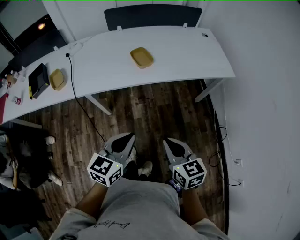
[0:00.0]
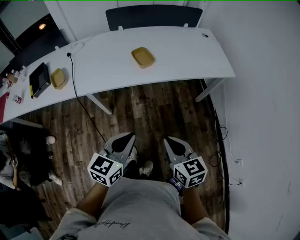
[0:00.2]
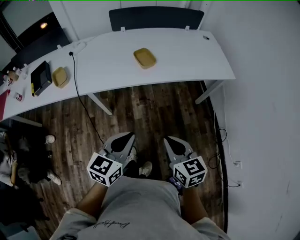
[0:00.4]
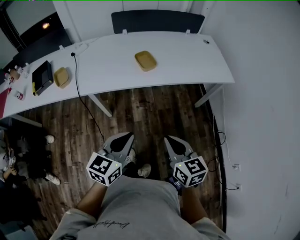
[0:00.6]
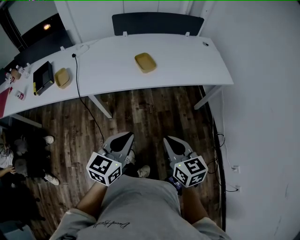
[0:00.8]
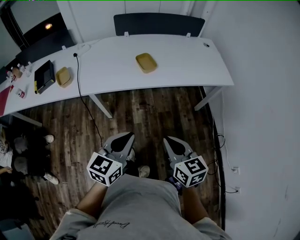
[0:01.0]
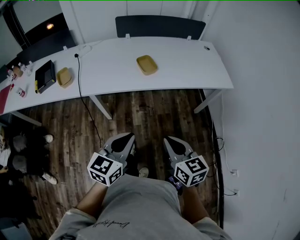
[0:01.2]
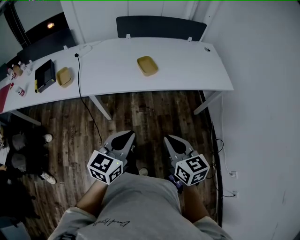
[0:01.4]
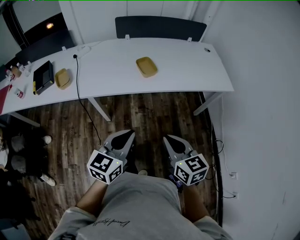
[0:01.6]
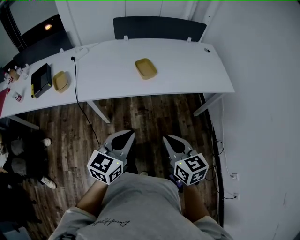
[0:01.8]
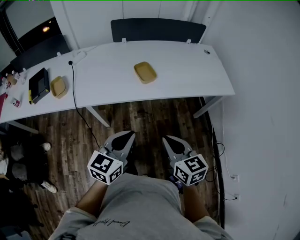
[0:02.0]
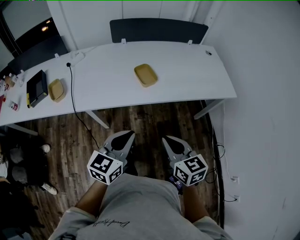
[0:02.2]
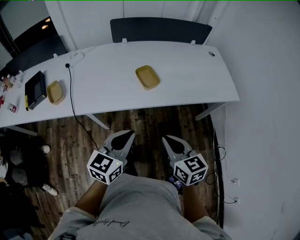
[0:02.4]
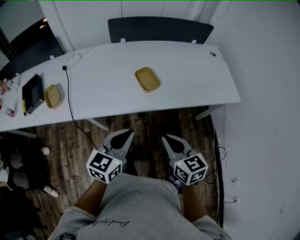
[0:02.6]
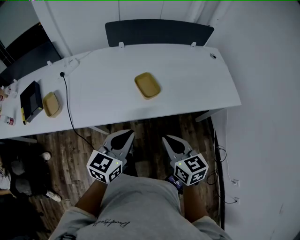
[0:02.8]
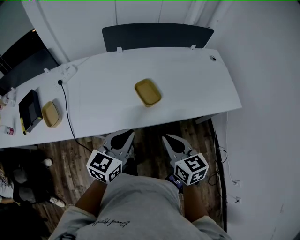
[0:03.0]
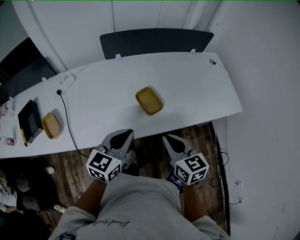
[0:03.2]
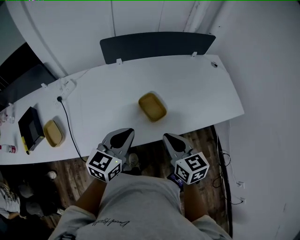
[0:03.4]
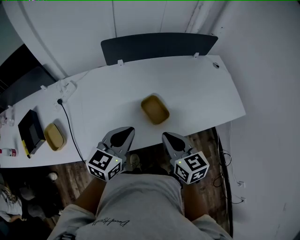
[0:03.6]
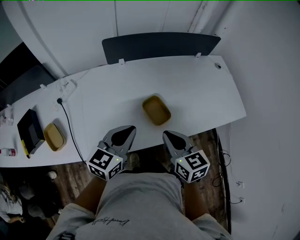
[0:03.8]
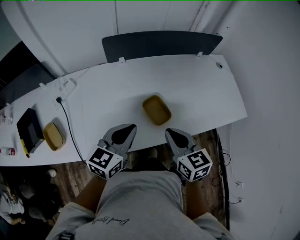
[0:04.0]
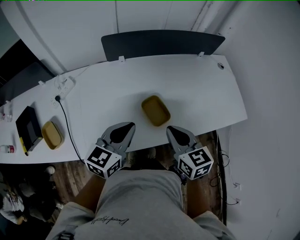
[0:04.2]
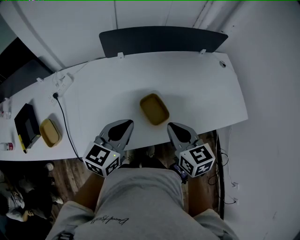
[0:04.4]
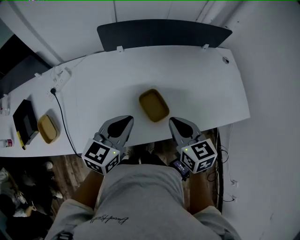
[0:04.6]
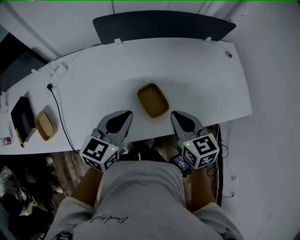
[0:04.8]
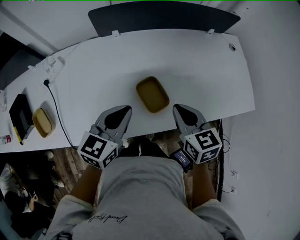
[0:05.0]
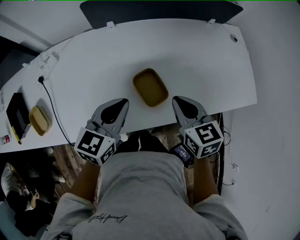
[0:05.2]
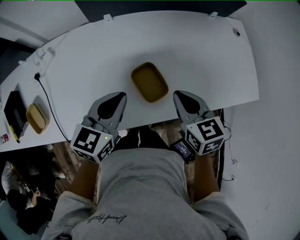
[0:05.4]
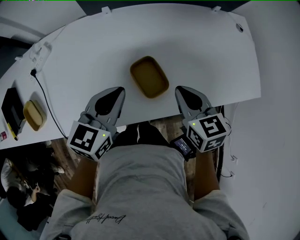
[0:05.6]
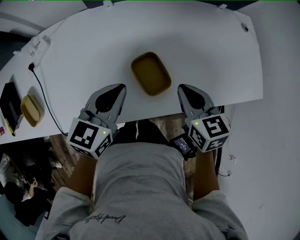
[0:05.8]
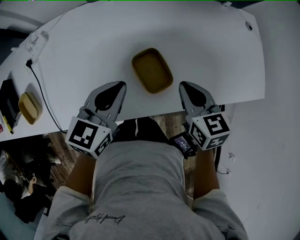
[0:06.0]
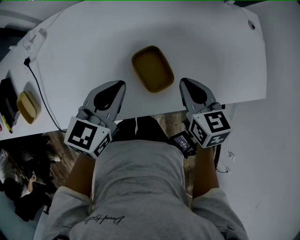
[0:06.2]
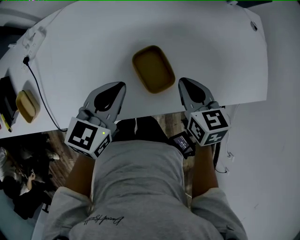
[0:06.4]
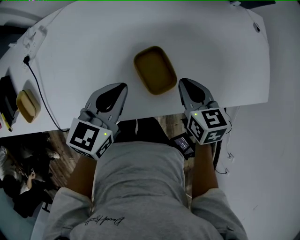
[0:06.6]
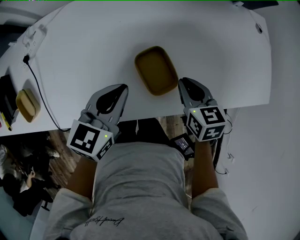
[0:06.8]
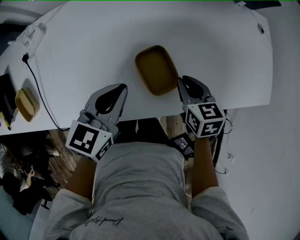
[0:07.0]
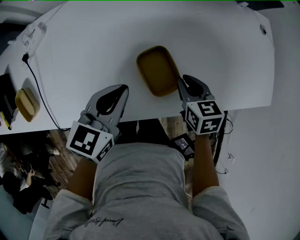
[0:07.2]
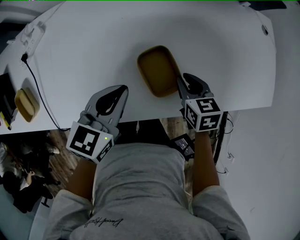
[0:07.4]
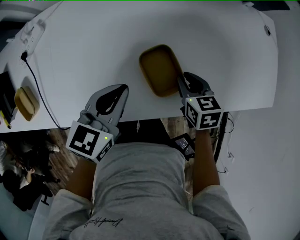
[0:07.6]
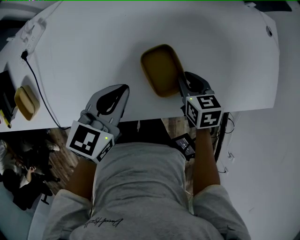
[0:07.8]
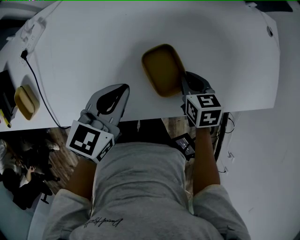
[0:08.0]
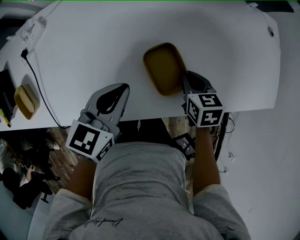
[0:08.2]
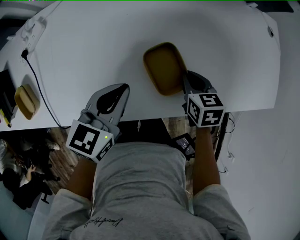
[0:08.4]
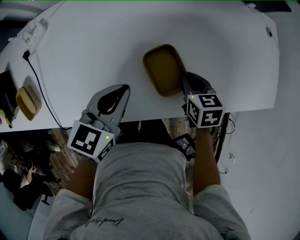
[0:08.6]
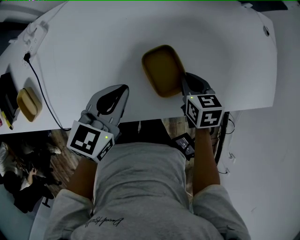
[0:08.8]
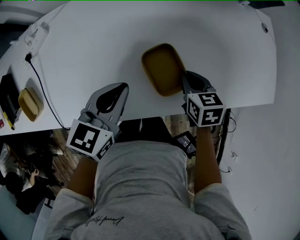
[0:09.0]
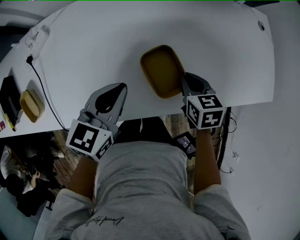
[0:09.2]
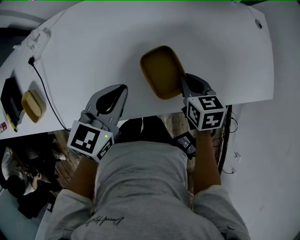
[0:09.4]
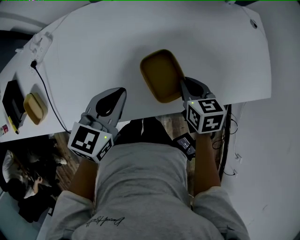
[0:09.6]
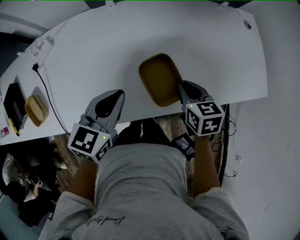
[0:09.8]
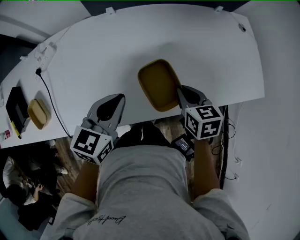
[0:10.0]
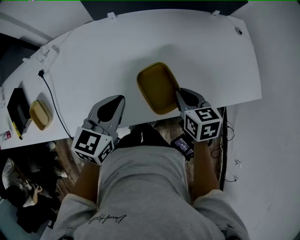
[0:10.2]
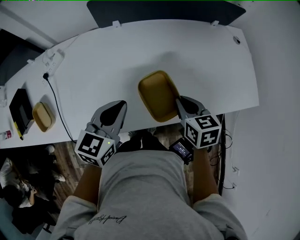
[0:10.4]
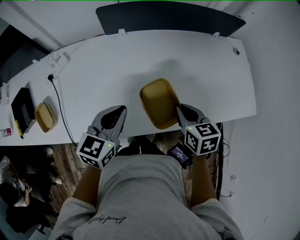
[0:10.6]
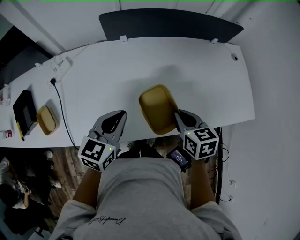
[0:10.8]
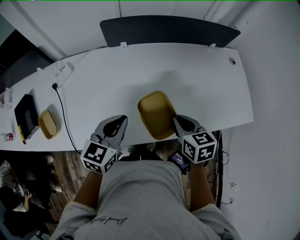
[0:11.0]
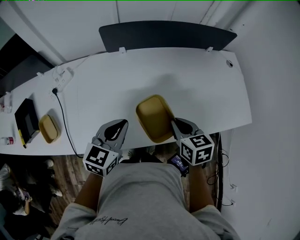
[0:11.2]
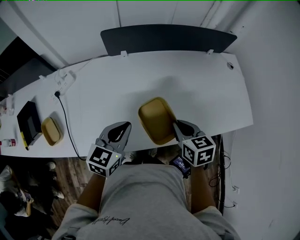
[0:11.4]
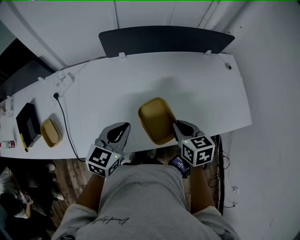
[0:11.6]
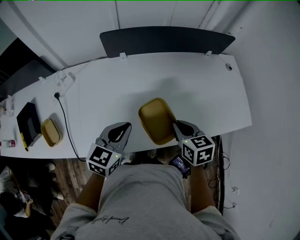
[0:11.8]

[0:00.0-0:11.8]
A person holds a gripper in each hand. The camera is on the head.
0:00.0 to 0:01.4: The grippers make only small movements.
0:01.4 to 0:03.0: The grippers both shift forward by roughly 25 cm.
0:03.0 to 0:04.4: Both grippers travel together forward, about 15 cm.
0:04.4 to 0:06.0: The right gripper goes some 15 cm downward, forward and to the right, while the left gripper goes some 10 cm downward and forward.
0:06.0 to 0:07.4: The right gripper moves downward, some 10 cm.
0:07.4 to 0:08.8: There are only small adjustments of the grippers.
0:08.8 to 0:10.4: The right gripper shifts approximately 15 cm upward and backward, while the left gripper goes about 10 cm upward.
0:10.4 to 0:11.8: The grippers stay close to where they were, moving slightly.

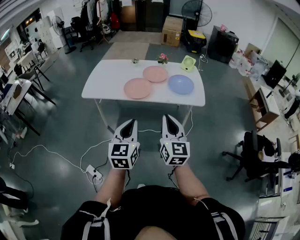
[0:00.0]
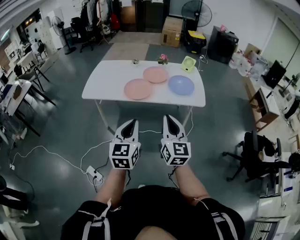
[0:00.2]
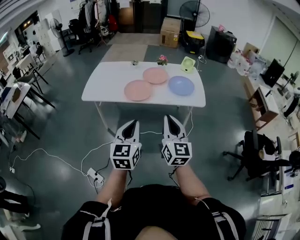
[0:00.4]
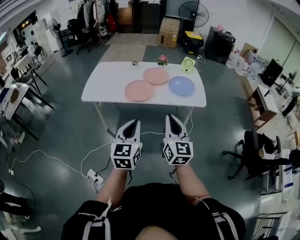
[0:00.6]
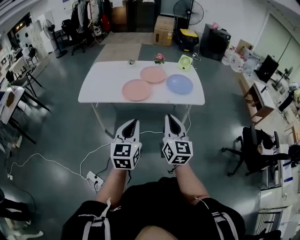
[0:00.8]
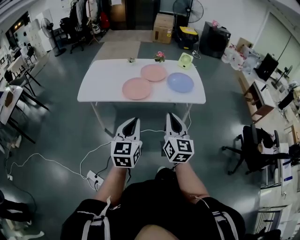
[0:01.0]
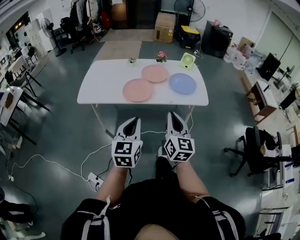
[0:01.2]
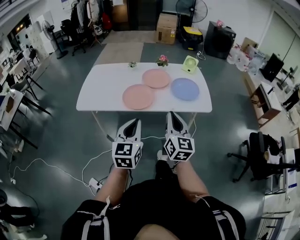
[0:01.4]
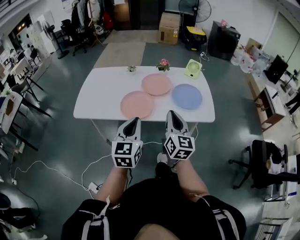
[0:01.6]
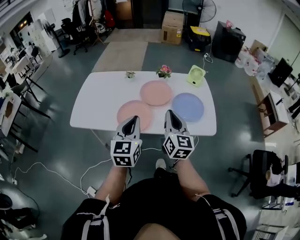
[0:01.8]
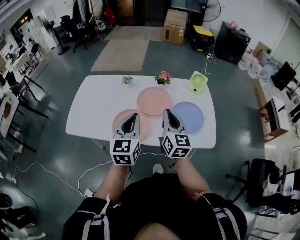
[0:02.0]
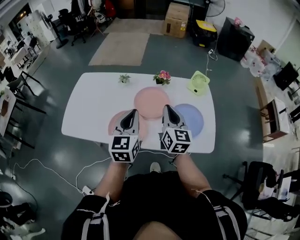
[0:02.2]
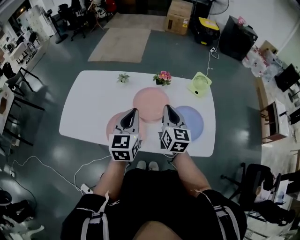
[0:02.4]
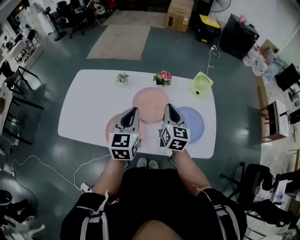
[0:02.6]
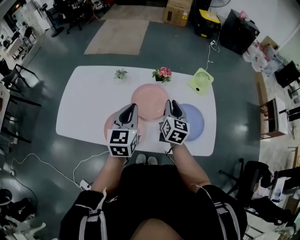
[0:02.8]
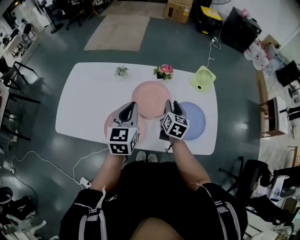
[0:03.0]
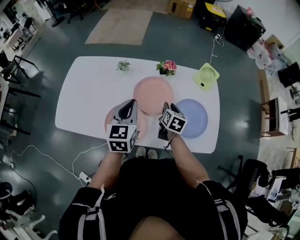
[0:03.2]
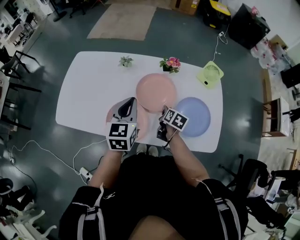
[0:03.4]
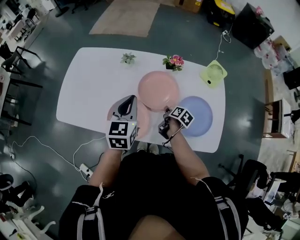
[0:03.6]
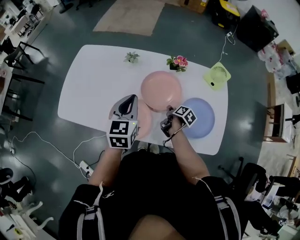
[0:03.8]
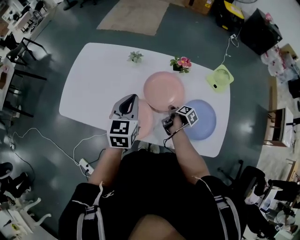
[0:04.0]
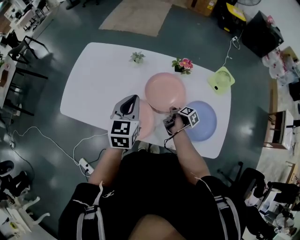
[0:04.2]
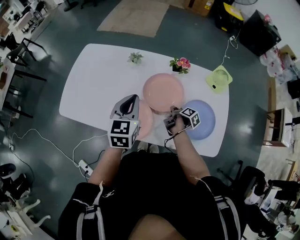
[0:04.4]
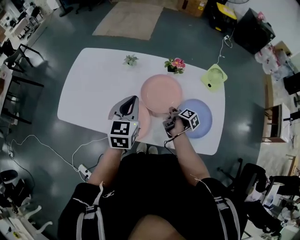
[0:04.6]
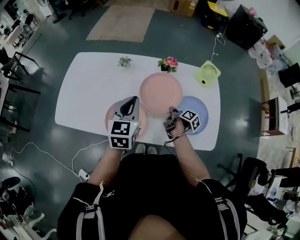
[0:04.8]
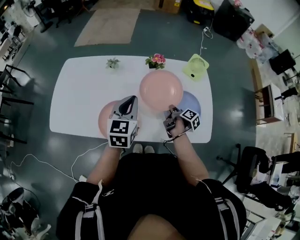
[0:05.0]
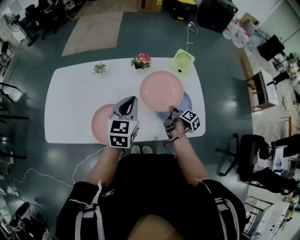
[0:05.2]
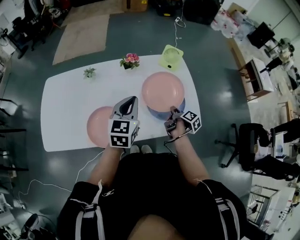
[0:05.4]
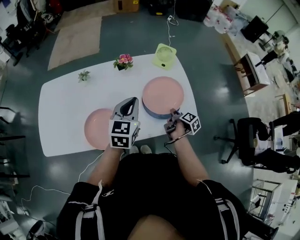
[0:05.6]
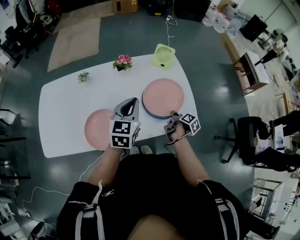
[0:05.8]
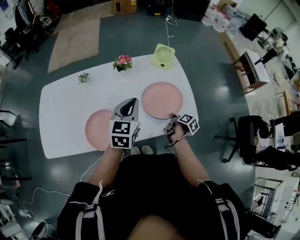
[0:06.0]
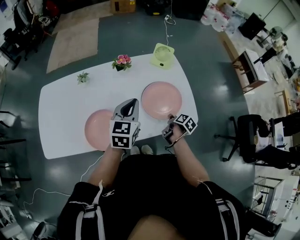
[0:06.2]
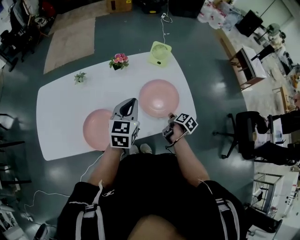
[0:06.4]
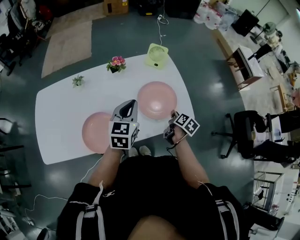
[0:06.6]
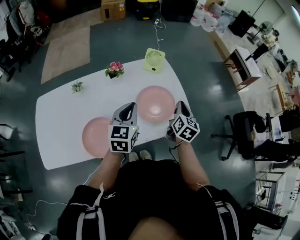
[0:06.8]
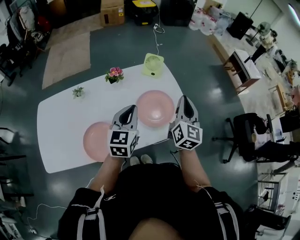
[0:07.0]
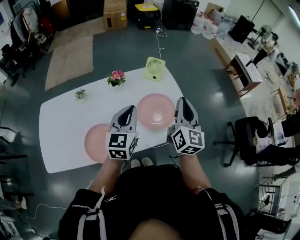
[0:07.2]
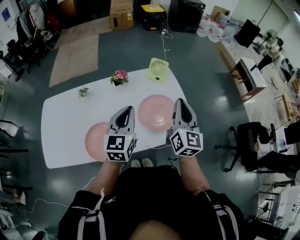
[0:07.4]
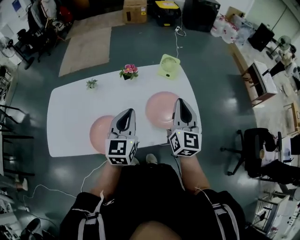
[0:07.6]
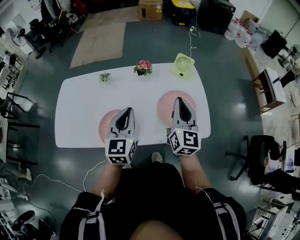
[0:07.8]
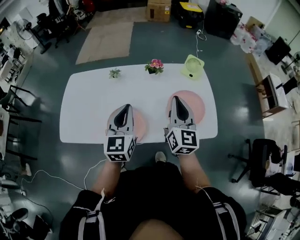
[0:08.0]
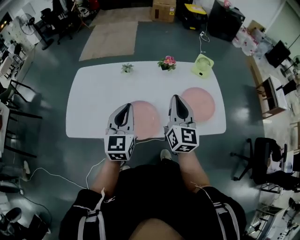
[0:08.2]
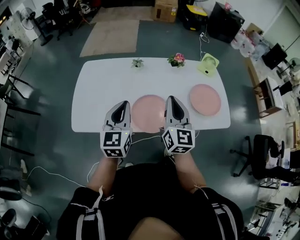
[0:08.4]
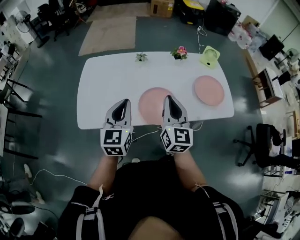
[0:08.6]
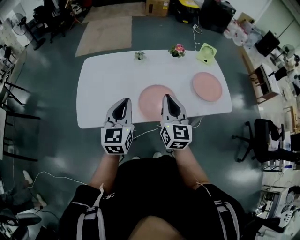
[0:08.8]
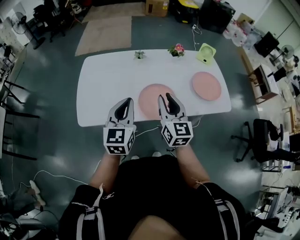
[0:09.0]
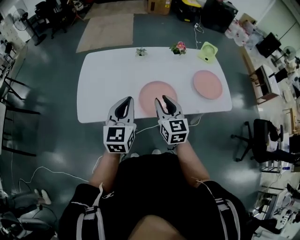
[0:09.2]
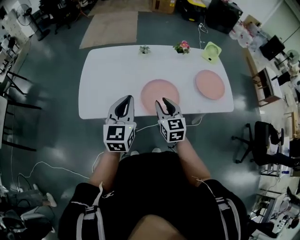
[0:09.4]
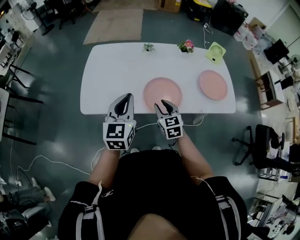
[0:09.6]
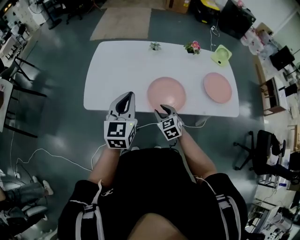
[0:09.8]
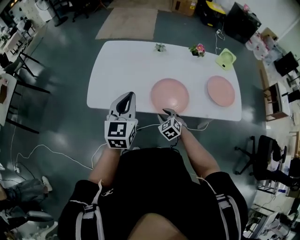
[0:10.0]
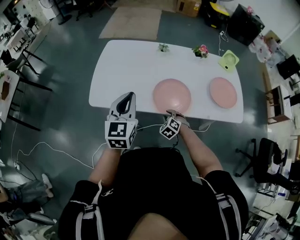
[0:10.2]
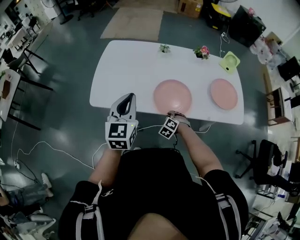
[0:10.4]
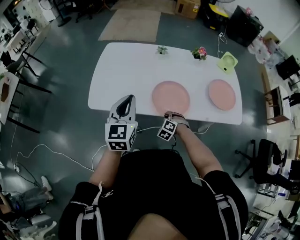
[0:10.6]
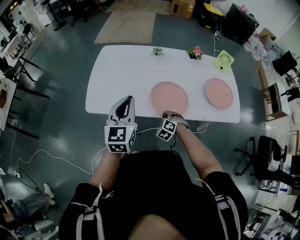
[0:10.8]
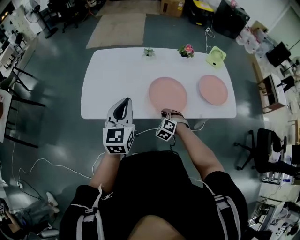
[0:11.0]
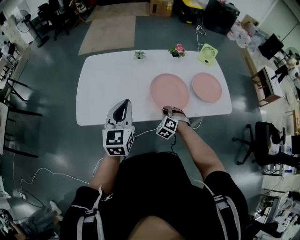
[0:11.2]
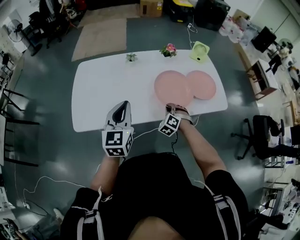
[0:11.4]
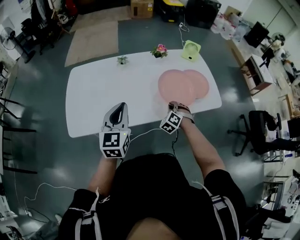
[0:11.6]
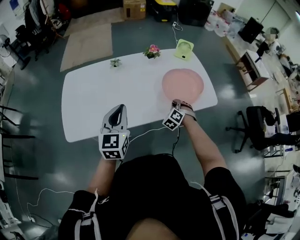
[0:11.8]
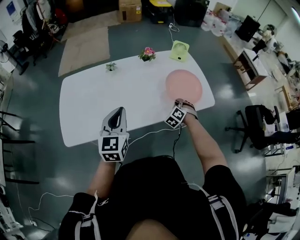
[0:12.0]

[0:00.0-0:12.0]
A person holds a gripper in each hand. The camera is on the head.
0:00.0 to 0:01.6: Both grippers move forward, about 30 cm.
0:01.6 to 0:03.0: Both grippers are carried forward, some 50 cm. The right gripper changes its angle by some 30 degrees, and opens up.
0:03.0 to 0:04.4: The right gripper travels downward by approximately 20 cm, and twists about 60 degrees clockwise, seen from behind; the left gripper moves to the left, some 5 cm.
0:04.4 to 0:06.0: The left gripper ends up some 20 cm from where it was, and rotates about 30 degrees. Meanwhile the right gripper moves approximately 25 cm, and turns by some 20 degrees.
0:06.0 to 0:07.6: The right gripper heads upward, covering roughly 35 cm, and points its fingers approximately 50 degrees further upward; the left gripper changes place by roughly 5 cm.
0:07.6 to 0:09.0: Both grippers are carried to the left and backward, about 50 cm. The right gripper opens up.
0:09.0 to 0:10.4: The left gripper ends up about 5 cm from where it was. The right gripper goes about 35 cm downward, and tips its fingers downward by about 50 degrees.
0:10.4 to 0:12.0: The left gripper moves roughly 20 cm, while the right gripper moves about 30 cm, and swivels some 30 degrees.
